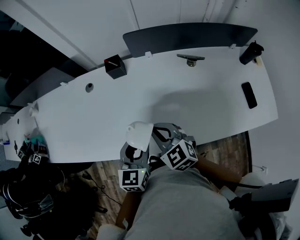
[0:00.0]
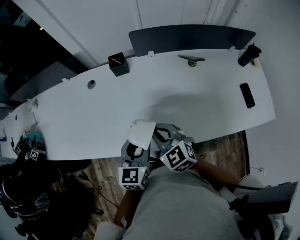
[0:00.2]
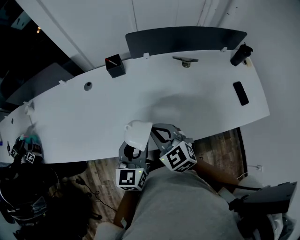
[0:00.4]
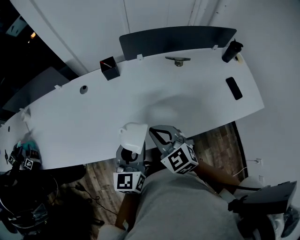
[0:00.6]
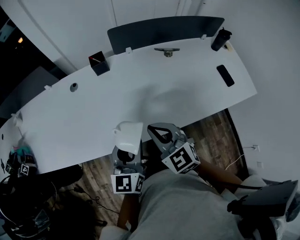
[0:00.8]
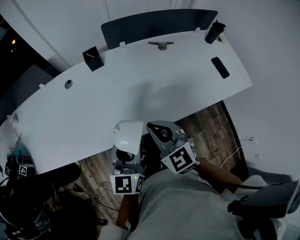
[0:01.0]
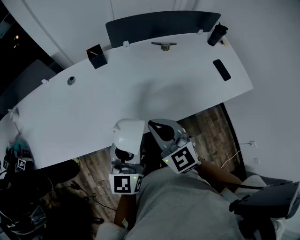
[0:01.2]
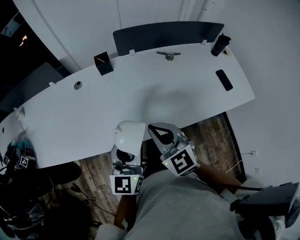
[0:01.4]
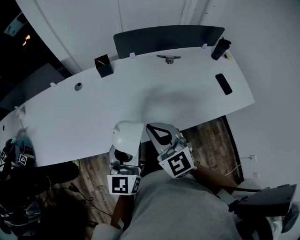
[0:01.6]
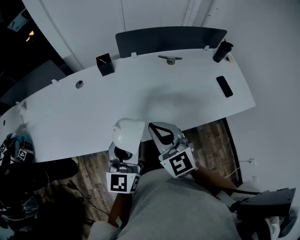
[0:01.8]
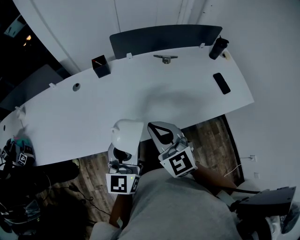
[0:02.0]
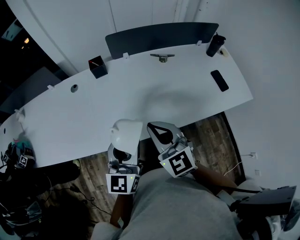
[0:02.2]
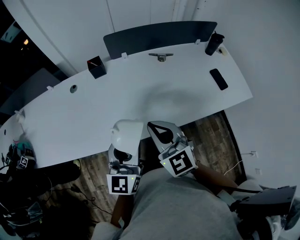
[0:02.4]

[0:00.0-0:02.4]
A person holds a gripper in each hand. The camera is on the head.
0:00.0 to 0:01.2: The grippers both shift backward and upward by roughly 15 cm. The left gripper swivels approximately 30 degrees.
0:01.2 to 0:02.4: The two grippers go roughly 5 cm to the right.

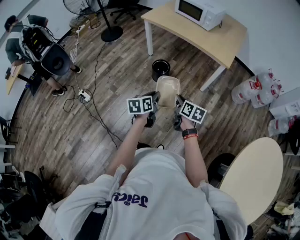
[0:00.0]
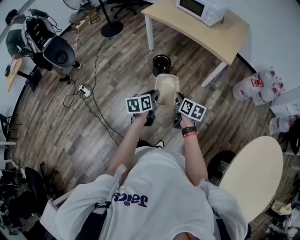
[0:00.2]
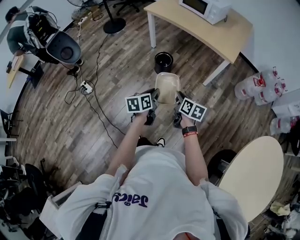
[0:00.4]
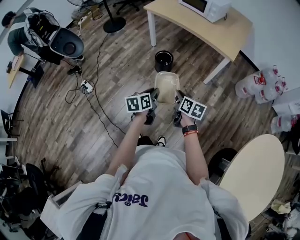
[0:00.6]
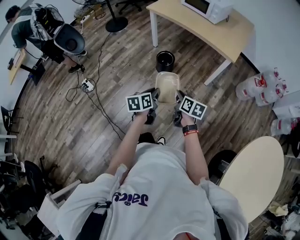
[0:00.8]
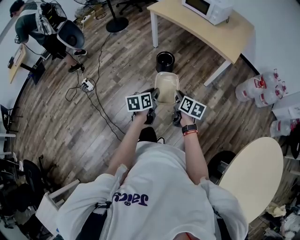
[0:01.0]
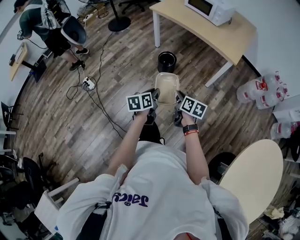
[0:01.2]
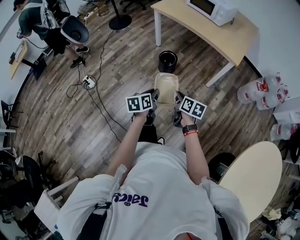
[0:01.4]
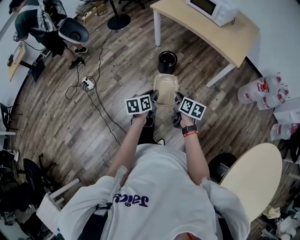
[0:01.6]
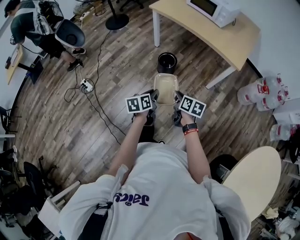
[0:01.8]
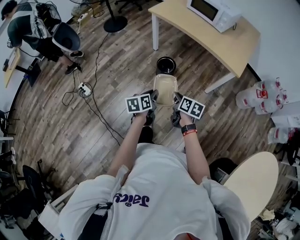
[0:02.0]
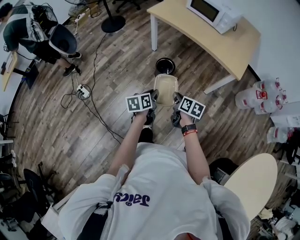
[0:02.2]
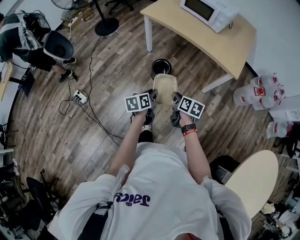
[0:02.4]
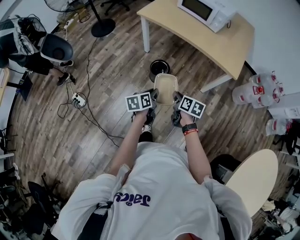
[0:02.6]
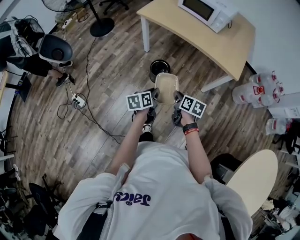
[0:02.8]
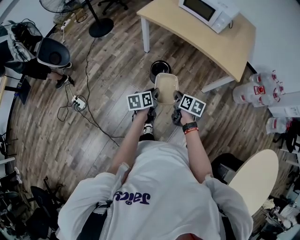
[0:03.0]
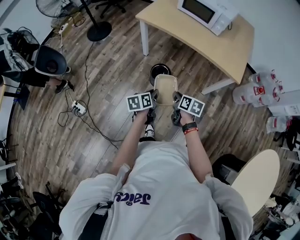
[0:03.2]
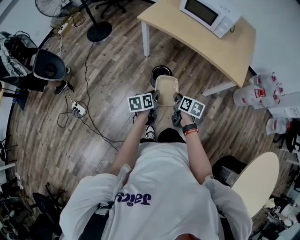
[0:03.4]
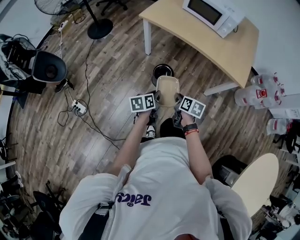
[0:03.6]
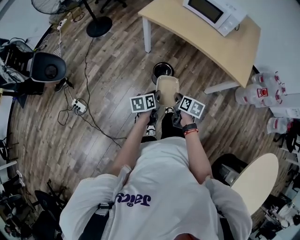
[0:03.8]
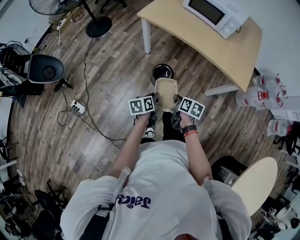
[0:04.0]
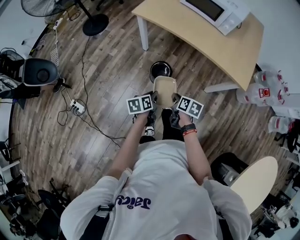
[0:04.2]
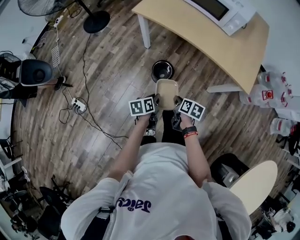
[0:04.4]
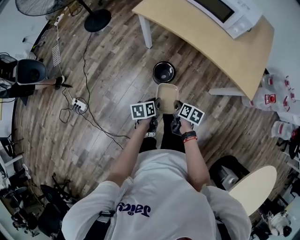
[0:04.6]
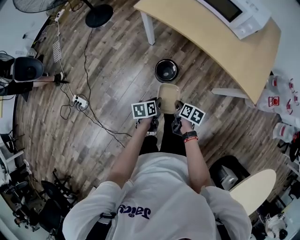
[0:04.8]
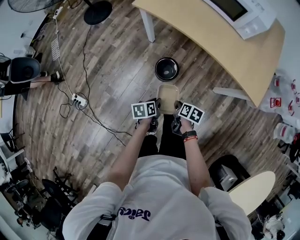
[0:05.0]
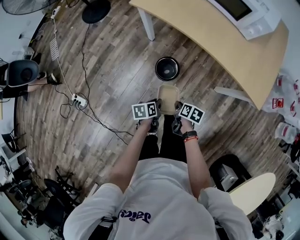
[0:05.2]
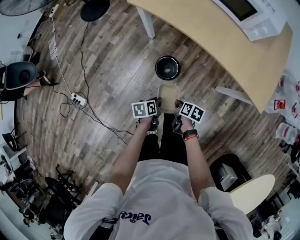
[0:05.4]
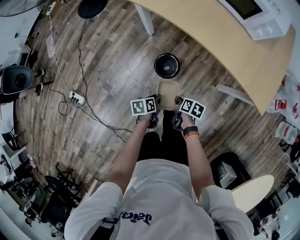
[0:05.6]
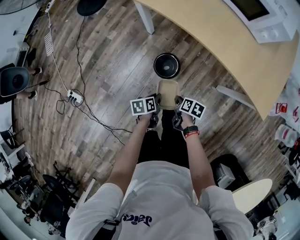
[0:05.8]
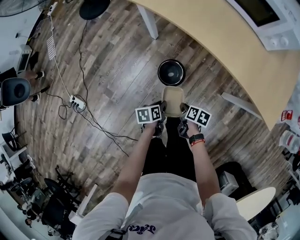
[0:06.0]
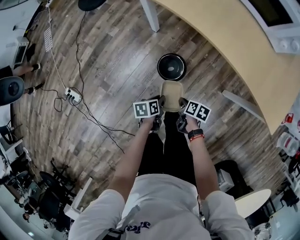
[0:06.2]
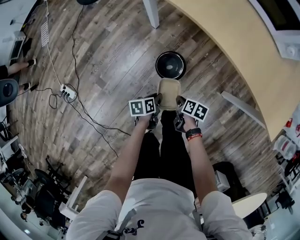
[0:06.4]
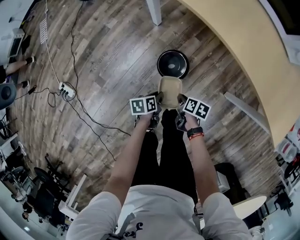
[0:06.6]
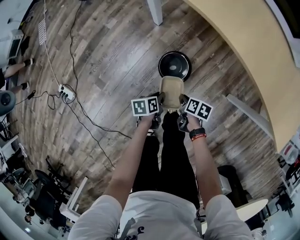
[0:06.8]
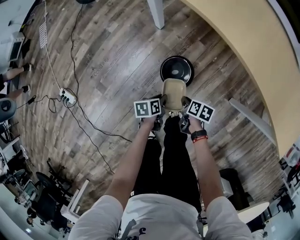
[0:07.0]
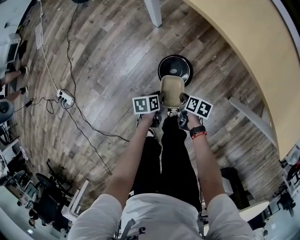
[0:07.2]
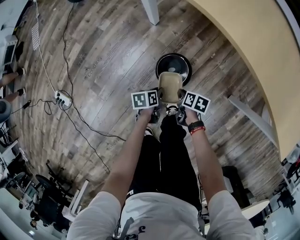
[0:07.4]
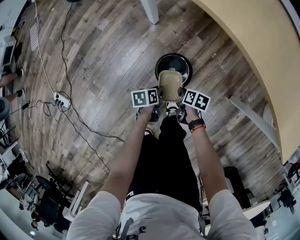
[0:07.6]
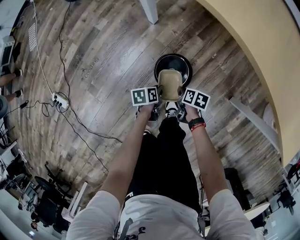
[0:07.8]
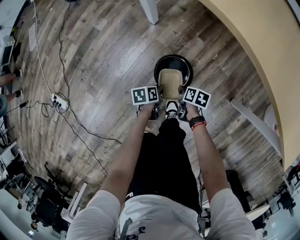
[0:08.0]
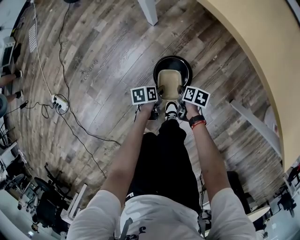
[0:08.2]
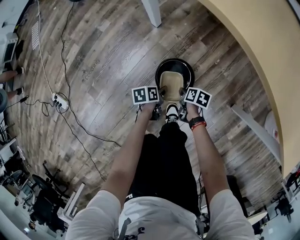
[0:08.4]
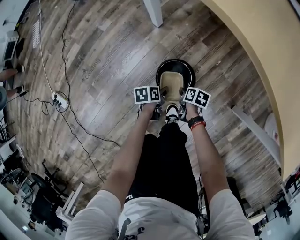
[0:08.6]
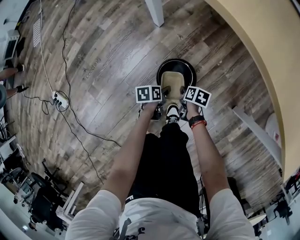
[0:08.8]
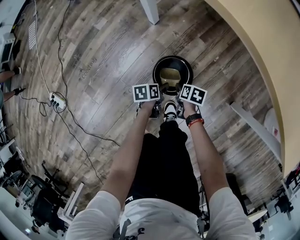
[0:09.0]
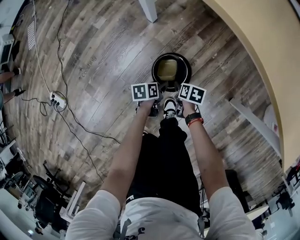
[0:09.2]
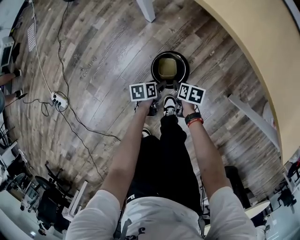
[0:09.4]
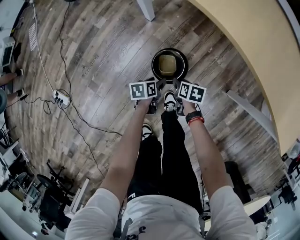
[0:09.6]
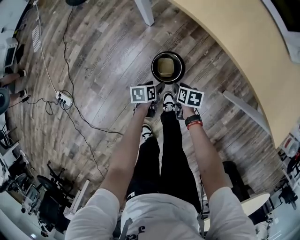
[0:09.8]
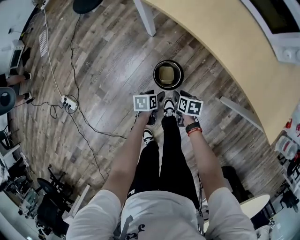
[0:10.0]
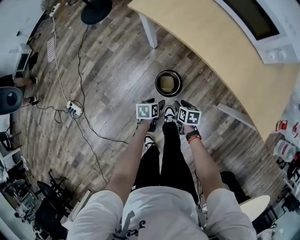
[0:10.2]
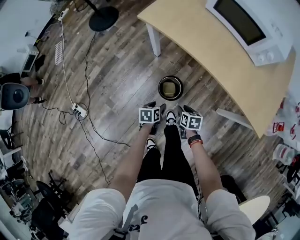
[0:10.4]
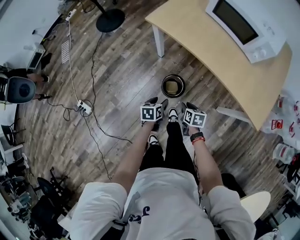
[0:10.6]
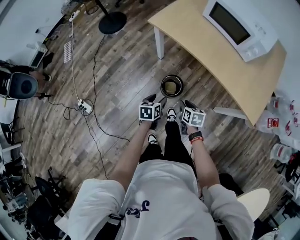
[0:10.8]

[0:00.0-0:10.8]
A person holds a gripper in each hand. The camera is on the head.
0:00.0 to 0:01.6: The left gripper changes place by some 5 cm; the right gripper changes place by roughly 5 cm.
0:01.6 to 0:03.0: Both grippers move forward, some 25 cm.
0:03.0 to 0:04.6: Both grippers travel together forward and downward, approximately 20 cm.
0:04.6 to 0:06.2: Both grippers move downward and forward, some 30 cm.
0:06.2 to 0:07.8: The grippers both shift downward and forward by roughly 30 cm.
0:07.8 to 0:09.2: The left gripper opens its fingers. The right gripper opens.
0:09.2 to 0:10.8: The grippers both shift upward by about 50 cm. The left gripper turns by approximately 30 degrees, while the right gripper changes its angle by about 30 degrees.

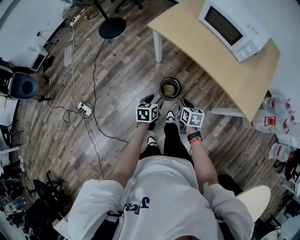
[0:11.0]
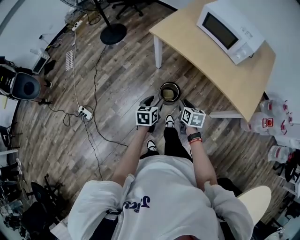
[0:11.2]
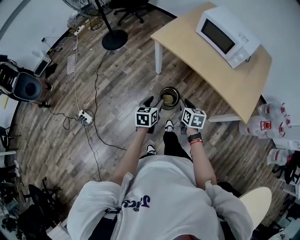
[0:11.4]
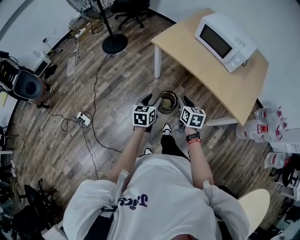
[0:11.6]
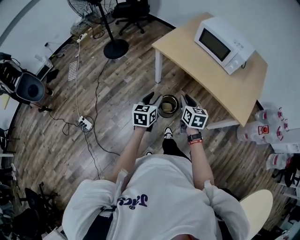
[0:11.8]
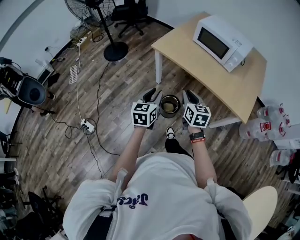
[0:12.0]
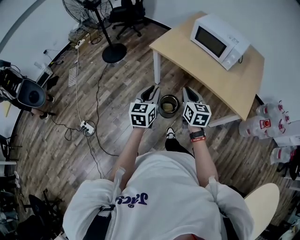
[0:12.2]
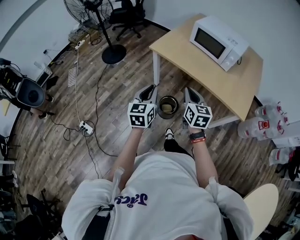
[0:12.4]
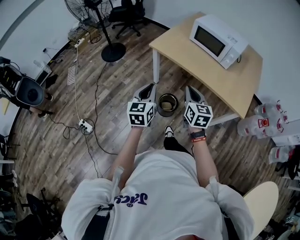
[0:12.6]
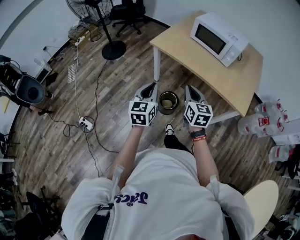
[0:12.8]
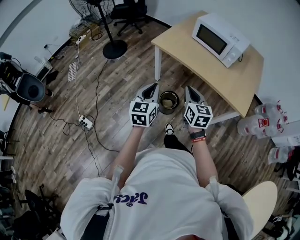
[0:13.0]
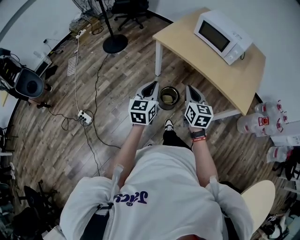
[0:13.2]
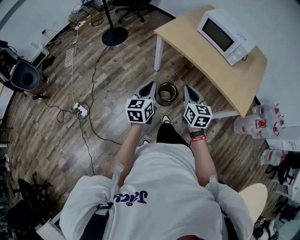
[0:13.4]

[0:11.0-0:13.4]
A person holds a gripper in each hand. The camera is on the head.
0:11.0 to 0:12.2: Both grippers move upward, roughly 25 cm. The left gripper swivels approximately 30 degrees, and closes up, while the right gripper rotates some 30 degrees.
0:12.2 to 0:13.4: The left gripper changes place by approximately 5 cm. Meanwhile the right gripper ends up approximately 5 cm from where it was.

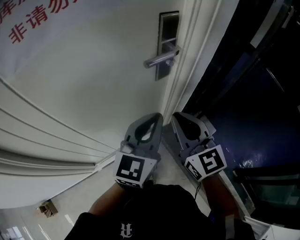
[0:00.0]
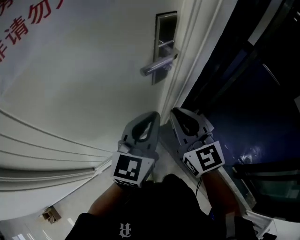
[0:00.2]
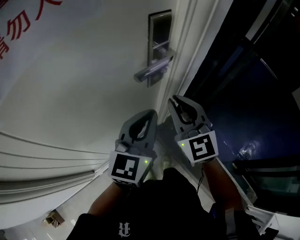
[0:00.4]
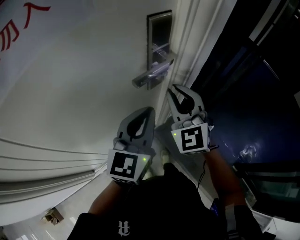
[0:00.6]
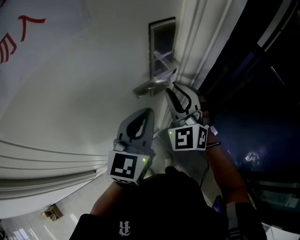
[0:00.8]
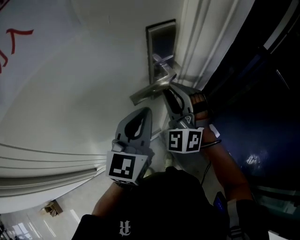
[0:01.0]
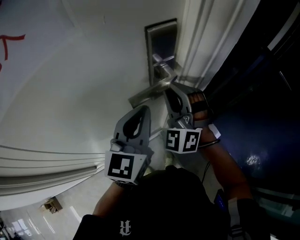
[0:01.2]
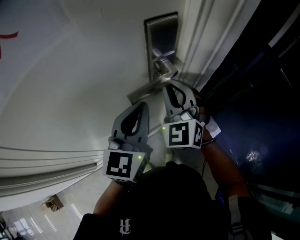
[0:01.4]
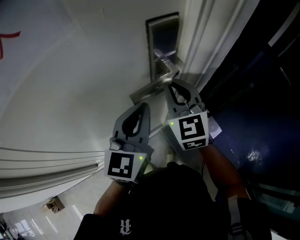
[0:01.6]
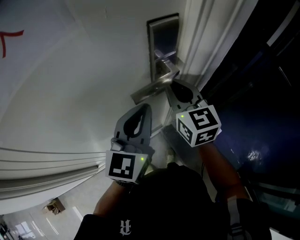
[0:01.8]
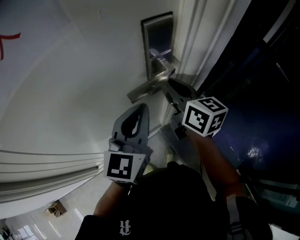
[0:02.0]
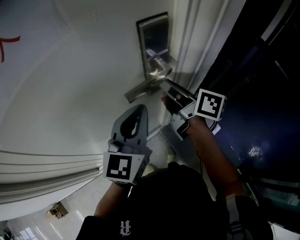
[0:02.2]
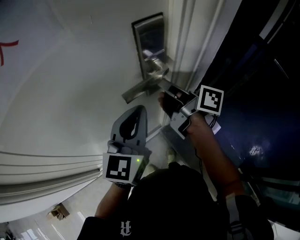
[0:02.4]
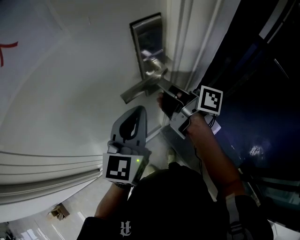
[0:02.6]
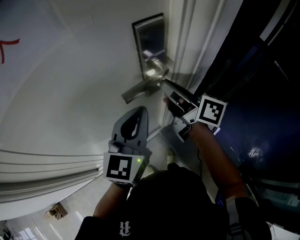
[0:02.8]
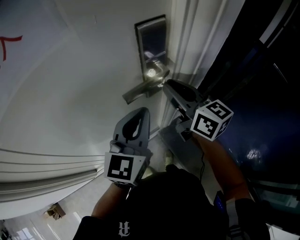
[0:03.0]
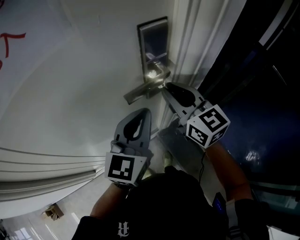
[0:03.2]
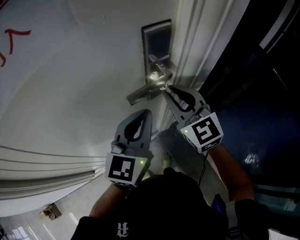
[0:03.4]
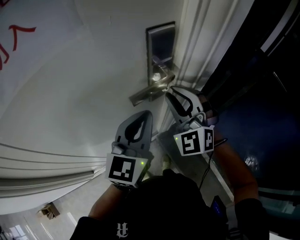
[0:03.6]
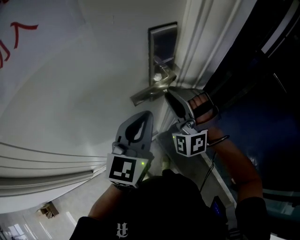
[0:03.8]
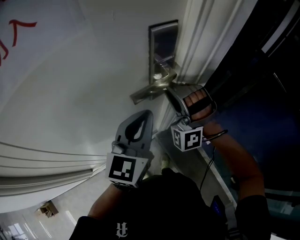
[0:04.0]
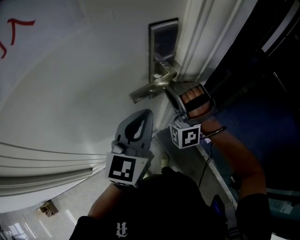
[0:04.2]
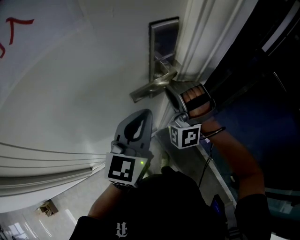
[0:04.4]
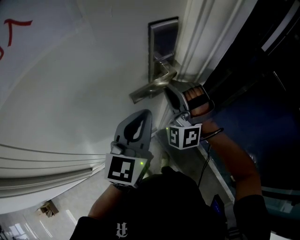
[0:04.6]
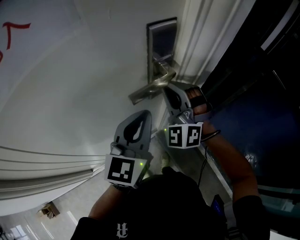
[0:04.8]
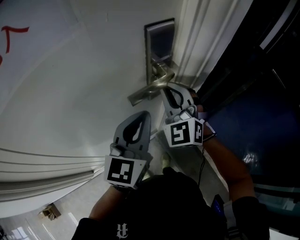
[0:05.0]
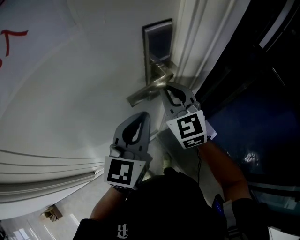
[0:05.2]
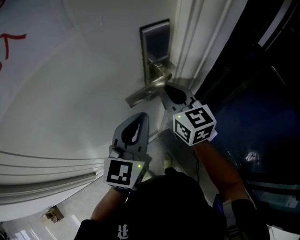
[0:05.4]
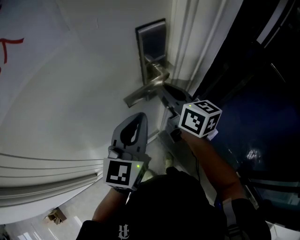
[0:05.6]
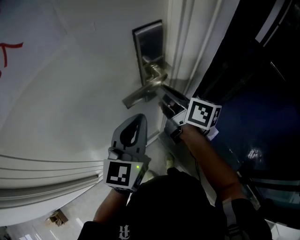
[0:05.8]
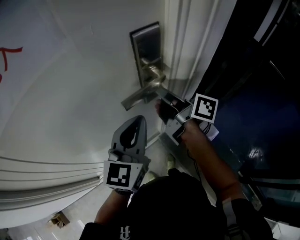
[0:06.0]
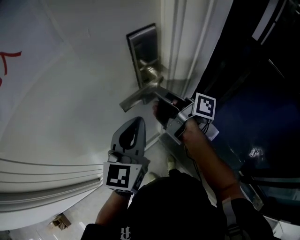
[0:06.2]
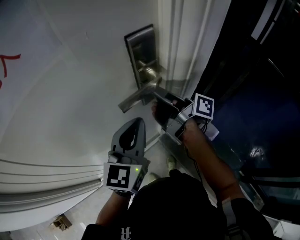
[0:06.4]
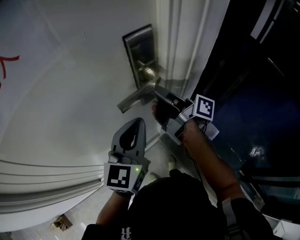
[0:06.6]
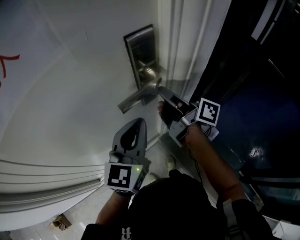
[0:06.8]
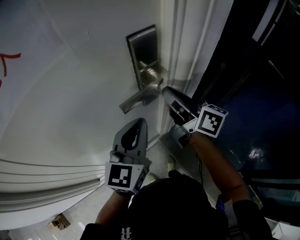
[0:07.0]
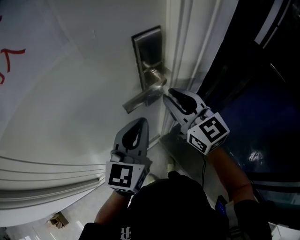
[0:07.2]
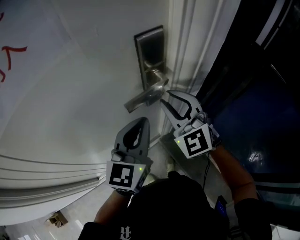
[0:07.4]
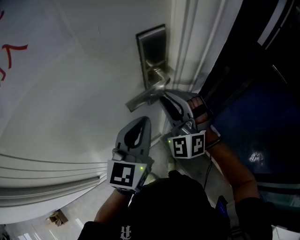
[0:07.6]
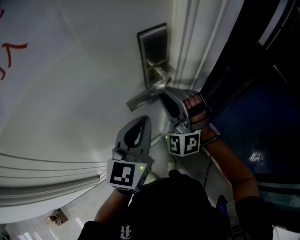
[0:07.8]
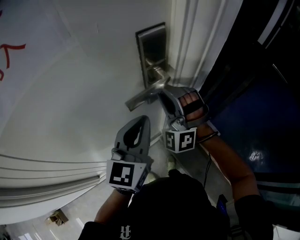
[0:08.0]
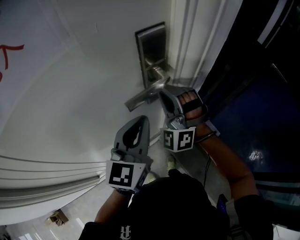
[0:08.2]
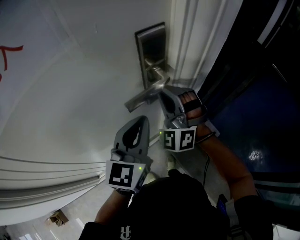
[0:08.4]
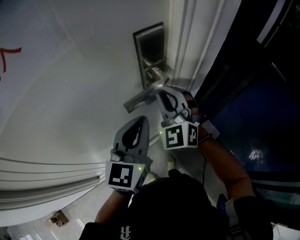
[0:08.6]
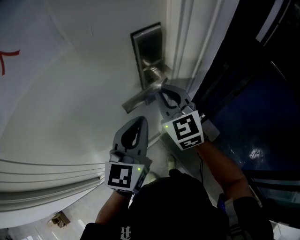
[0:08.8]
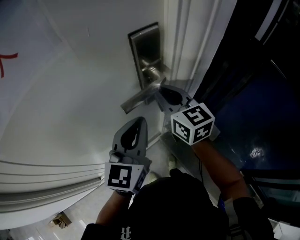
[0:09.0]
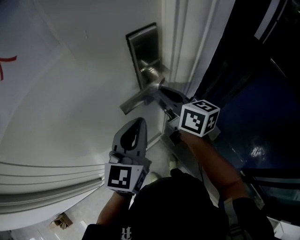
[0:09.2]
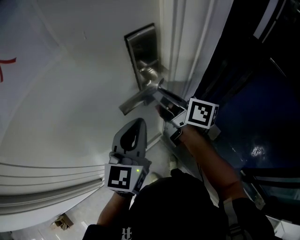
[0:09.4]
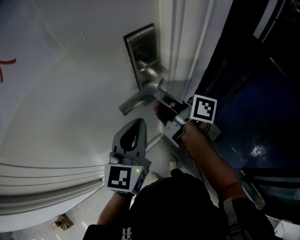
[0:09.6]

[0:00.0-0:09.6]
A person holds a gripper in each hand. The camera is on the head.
0:00.0 to 0:01.6: The right gripper shifts approximately 20 cm forward, while the left gripper moves forward, about 15 cm.
0:01.6 to 0:03.2: The right gripper changes its angle by approximately 30 degrees.
0:03.2 to 0:04.8: The right gripper rotates around the line of its fingers by some 70 degrees, counterclockwise from behind.
0:04.8 to 0:06.4: The right gripper rolls clockwise, seen from behind, by roughly 150 degrees.
0:06.4 to 0:08.0: The right gripper rotates around the line of its fingers by some 160 degrees, counterclockwise from behind.
0:08.0 to 0:09.6: The right gripper twists about 140 degrees clockwise, seen from behind.
